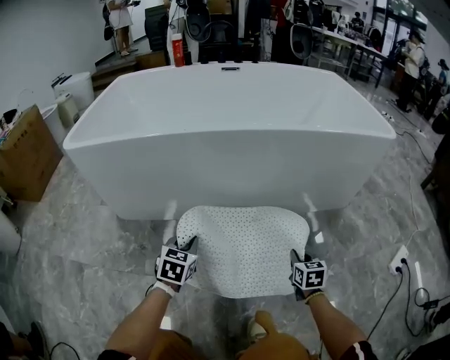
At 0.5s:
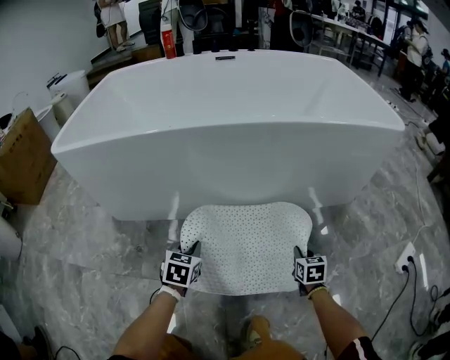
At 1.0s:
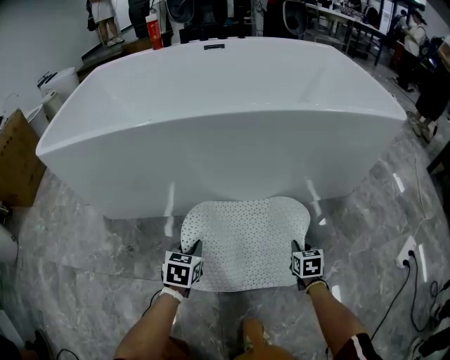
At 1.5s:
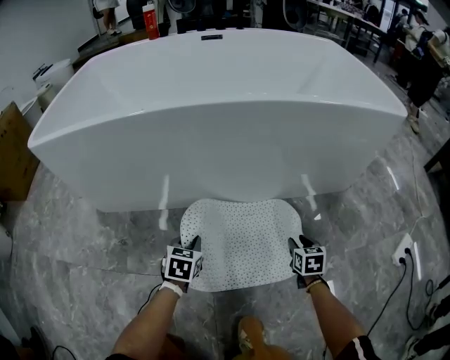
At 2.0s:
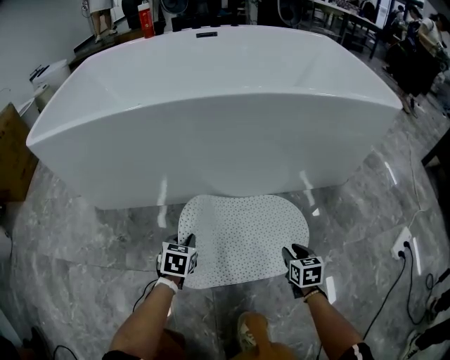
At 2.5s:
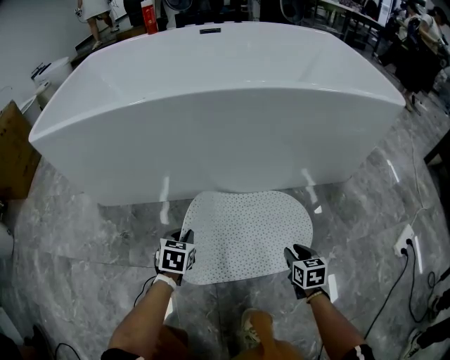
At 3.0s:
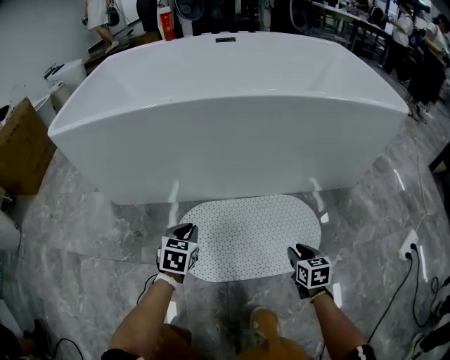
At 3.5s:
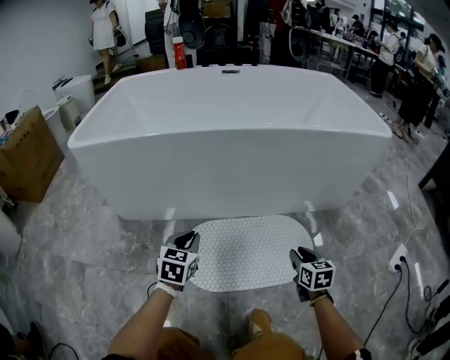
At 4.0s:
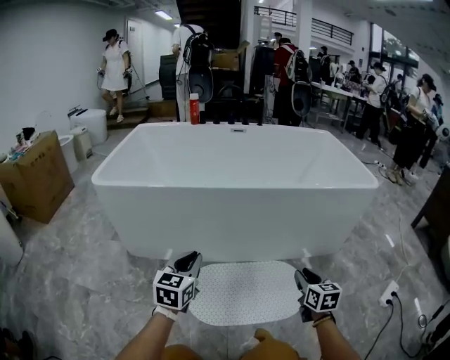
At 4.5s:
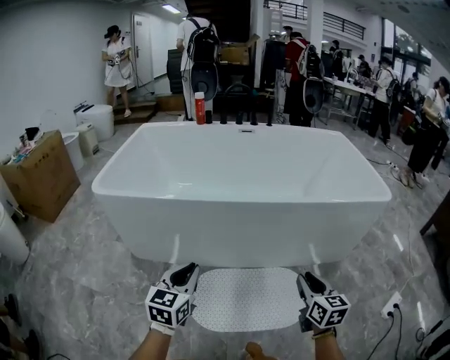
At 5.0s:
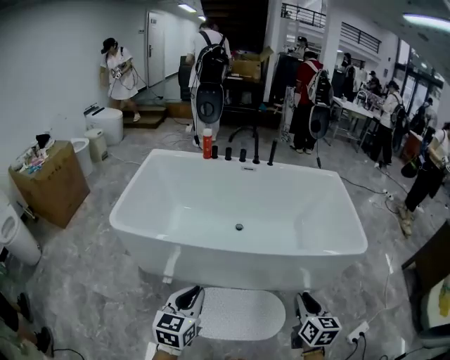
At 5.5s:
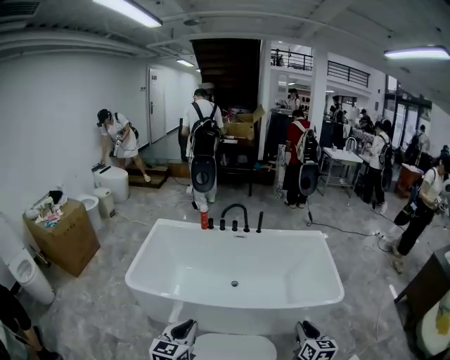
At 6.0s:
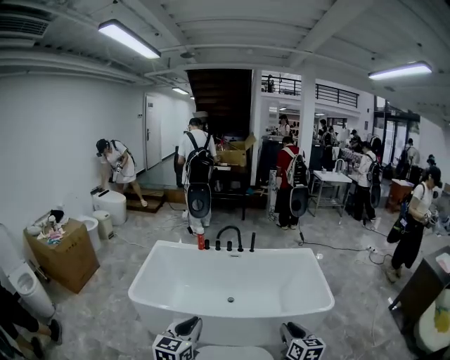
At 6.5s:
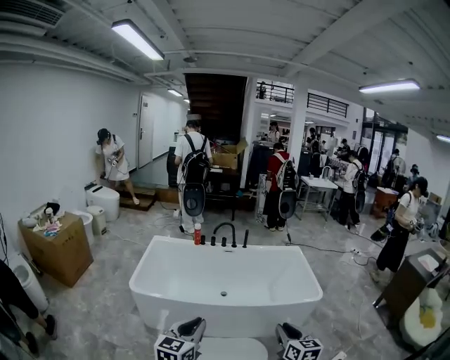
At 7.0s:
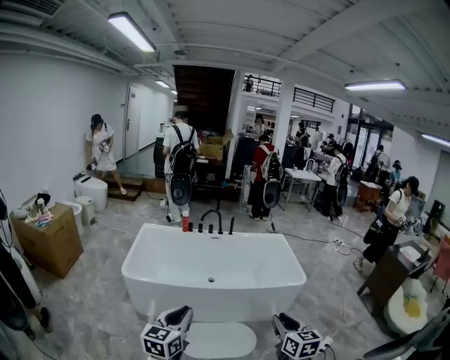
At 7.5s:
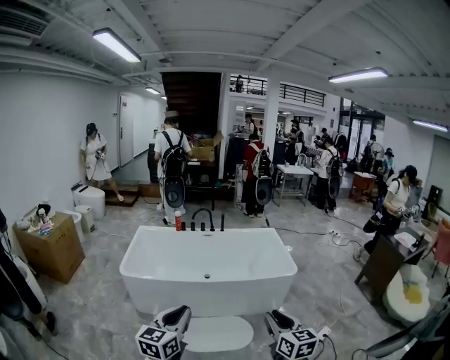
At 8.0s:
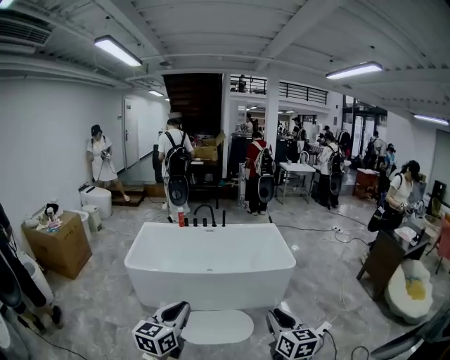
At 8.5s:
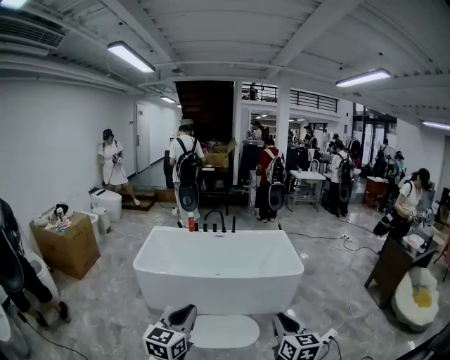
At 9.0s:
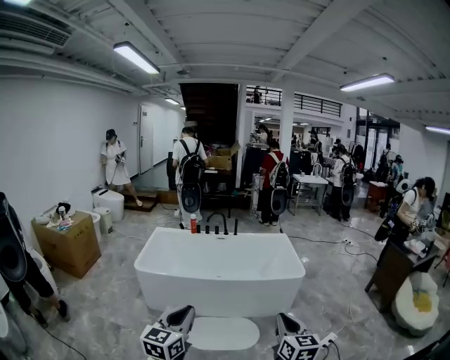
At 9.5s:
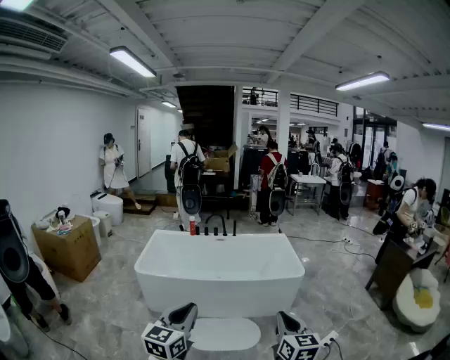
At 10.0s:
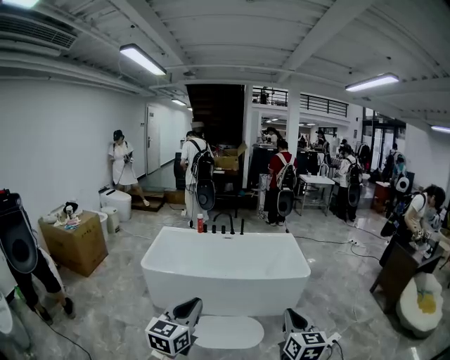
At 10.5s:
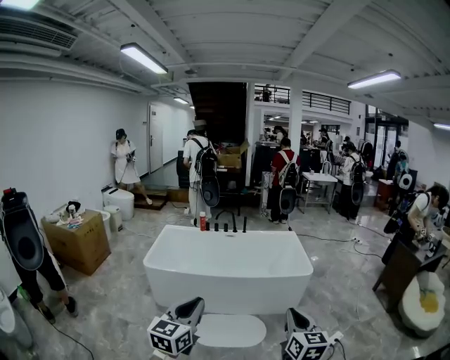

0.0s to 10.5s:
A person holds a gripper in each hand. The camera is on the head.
0.0s to 2.0s: The right gripper travels downward by about 10 cm, and opens its fingers. The left gripper travels downward and to the right by roughly 15 cm.
2.0s to 4.0s: Both grippers travel together upward, some 30 cm. The right gripper swivels approximately 20 degrees. Meanwhile the left gripper tips its fingers upward by approximately 30 degrees.
4.0s to 6.5s: The grippers both shift upward by roughly 70 cm.
6.5s to 8.5s: The left gripper travels backward and to the right by roughly 30 cm, while the right gripper travels backward by some 30 cm.
8.5s to 10.5s: The grippers move only a little.

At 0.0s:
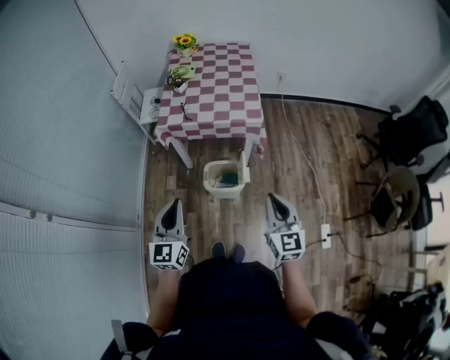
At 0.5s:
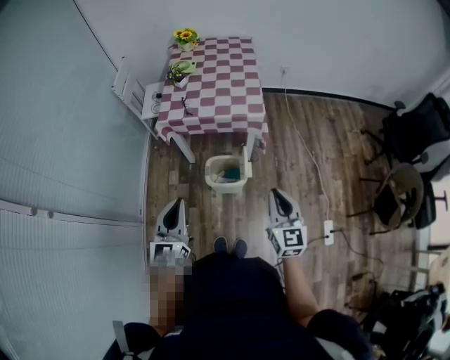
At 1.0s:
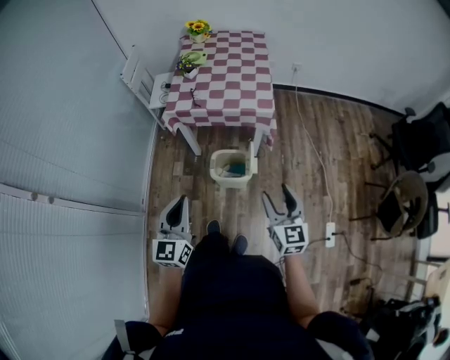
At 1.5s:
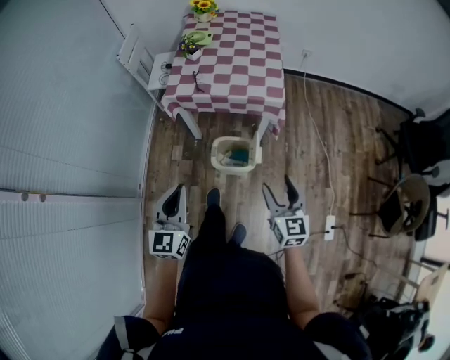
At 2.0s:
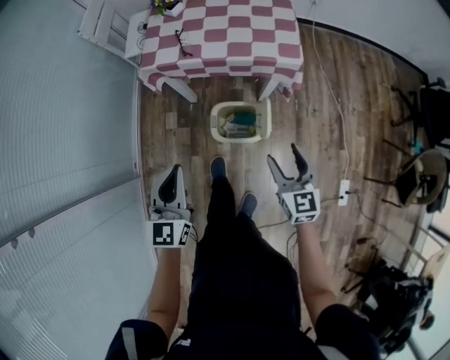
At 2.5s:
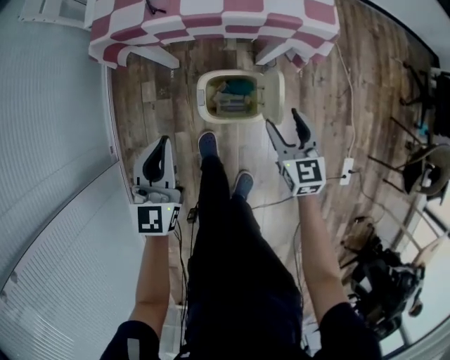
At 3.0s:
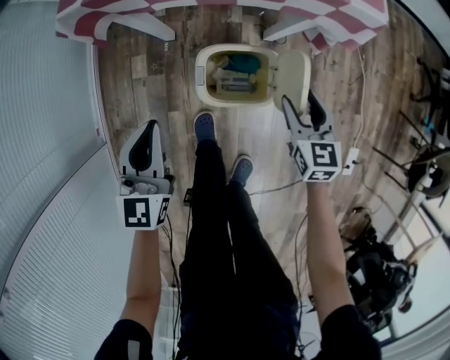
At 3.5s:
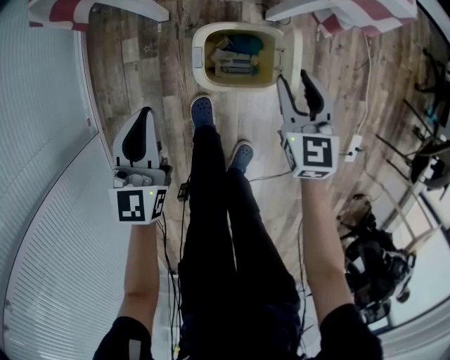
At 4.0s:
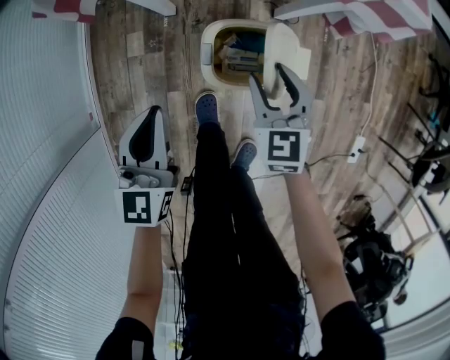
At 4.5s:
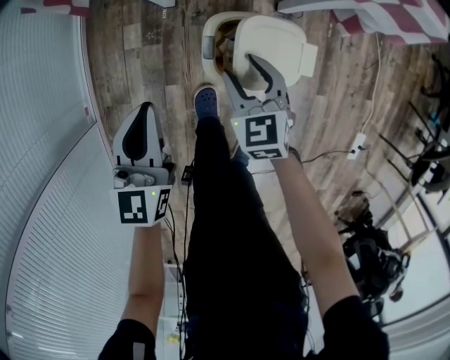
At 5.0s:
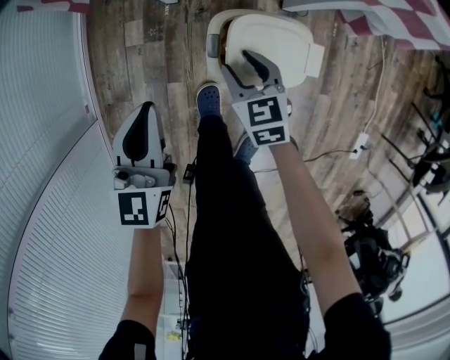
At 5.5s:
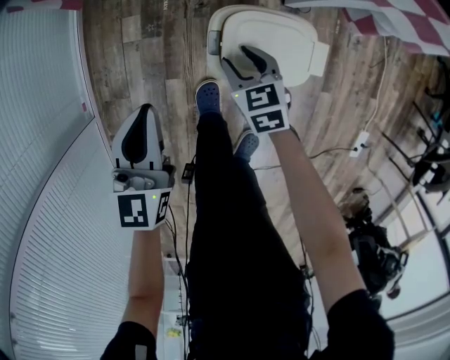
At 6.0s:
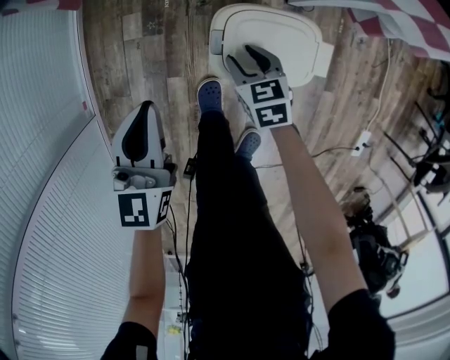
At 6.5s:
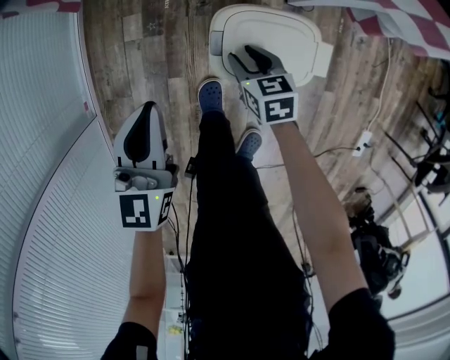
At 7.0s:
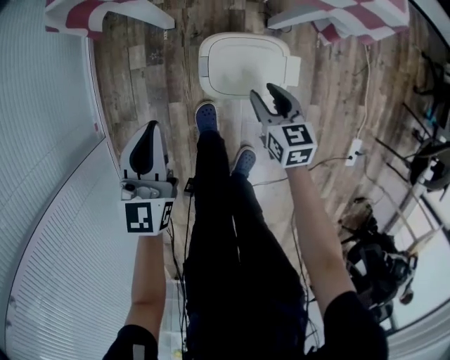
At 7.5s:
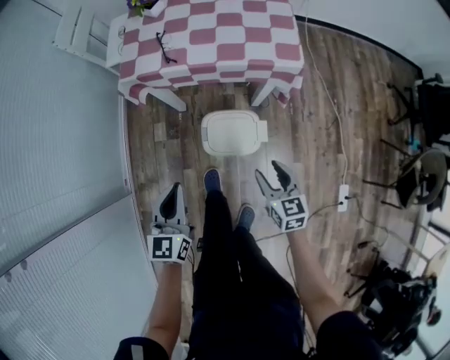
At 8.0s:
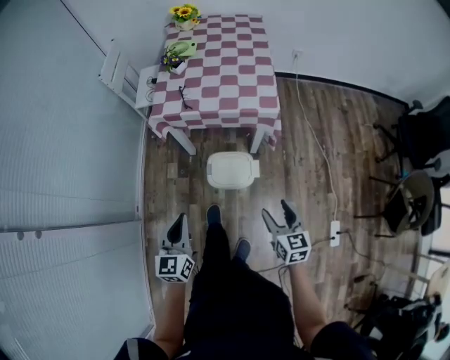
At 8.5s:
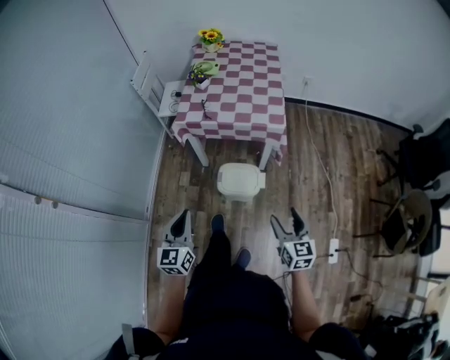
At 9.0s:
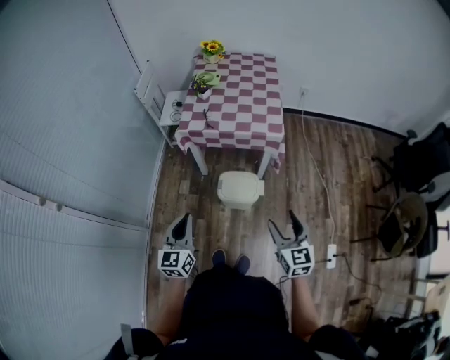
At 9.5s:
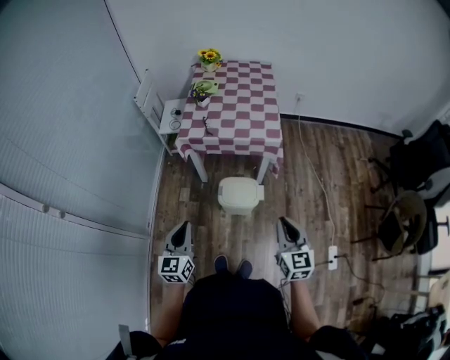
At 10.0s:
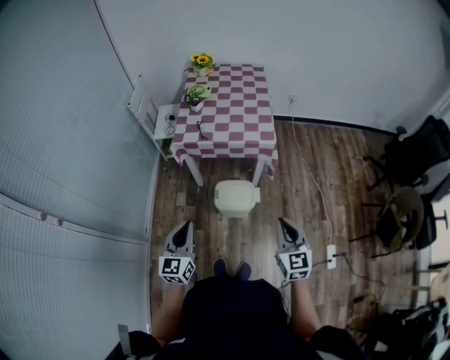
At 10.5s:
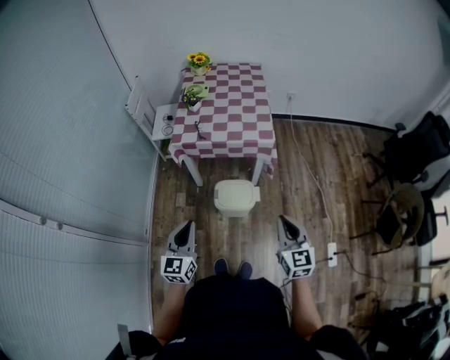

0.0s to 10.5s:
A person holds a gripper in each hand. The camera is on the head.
0.0s to 2.0s: The left gripper is displaced forward and downward by roughly 20 cm. The right gripper travels downward and forward by about 25 cm, and opens up.
2.0s to 4.0s: The left gripper travels downward by approximately 30 cm. The right gripper heads downward, forward and to the left, covering roughly 35 cm.
4.0s to 6.5s: The right gripper heads downward, covering about 15 cm, and rotates some 30 degrees.
6.5s to 8.5s: Both grippers move upward and backward, about 50 cm. The right gripper rotates roughly 30 degrees, and opens up.
8.5s to 10.5s: The right gripper travels upward by approximately 10 cm, and closes.

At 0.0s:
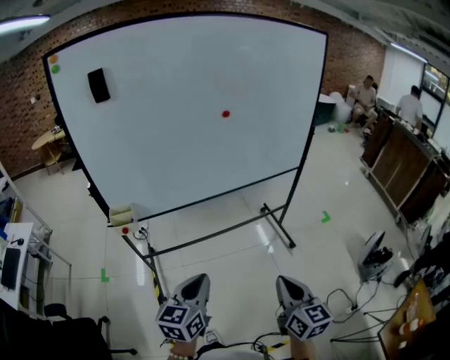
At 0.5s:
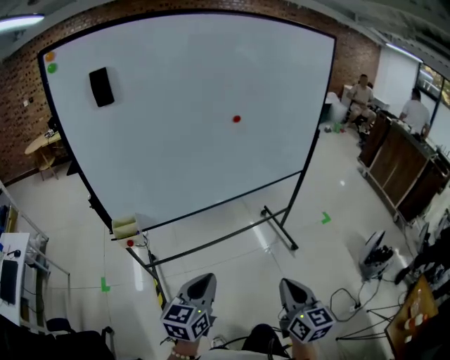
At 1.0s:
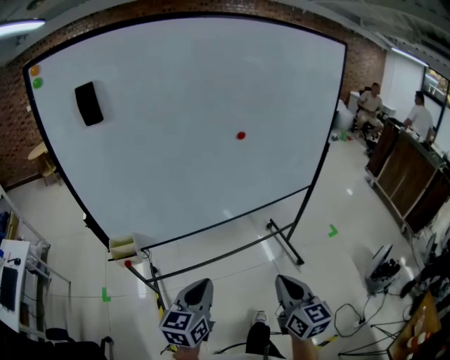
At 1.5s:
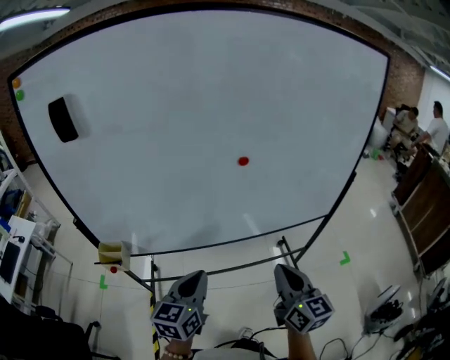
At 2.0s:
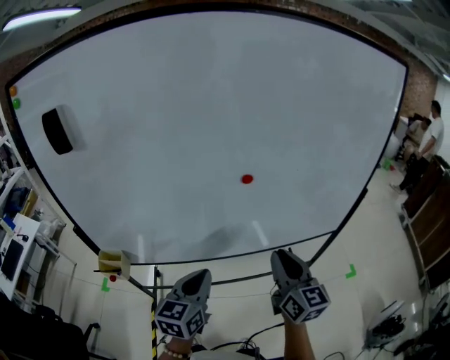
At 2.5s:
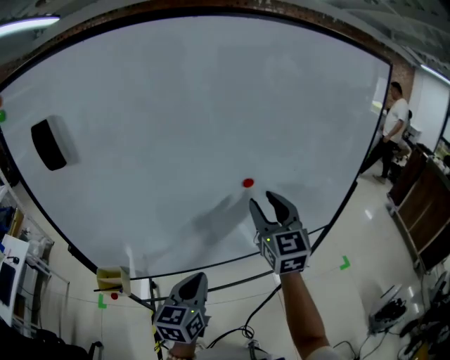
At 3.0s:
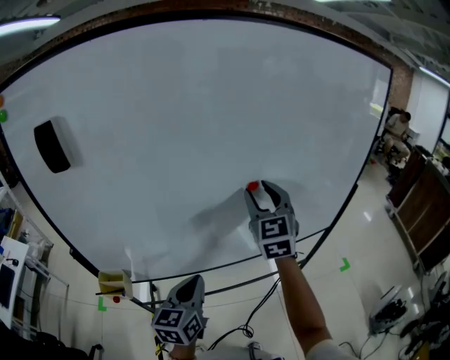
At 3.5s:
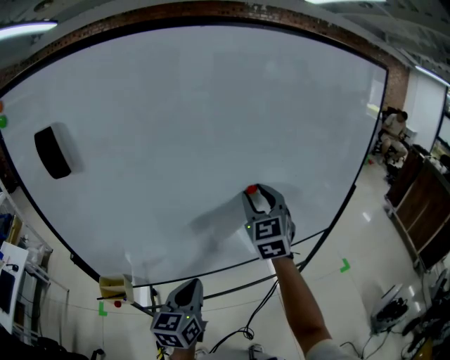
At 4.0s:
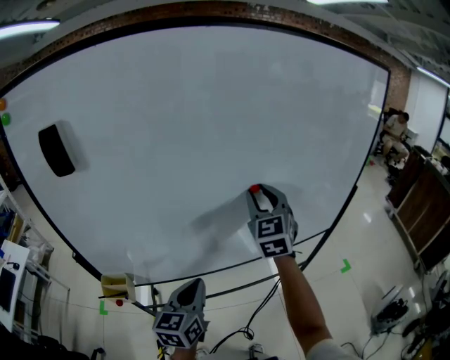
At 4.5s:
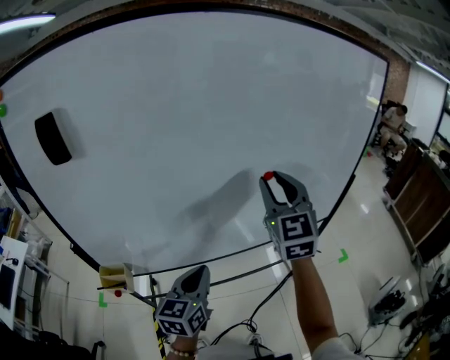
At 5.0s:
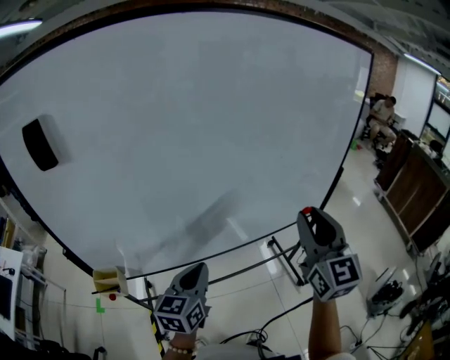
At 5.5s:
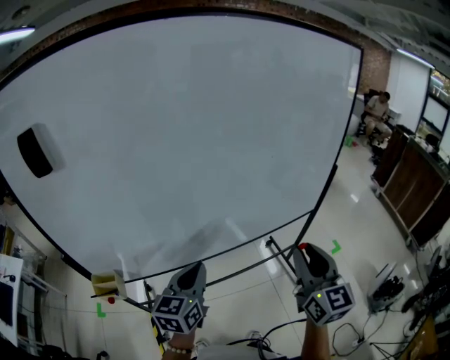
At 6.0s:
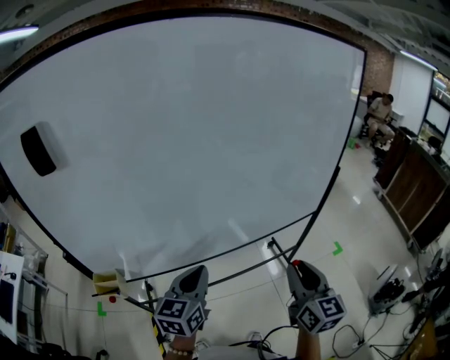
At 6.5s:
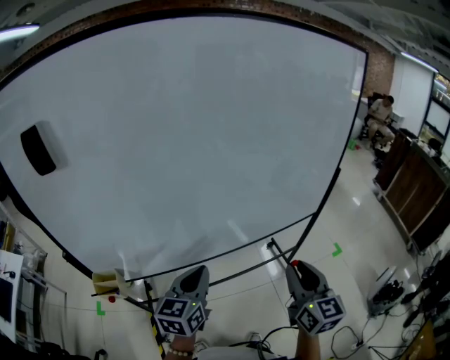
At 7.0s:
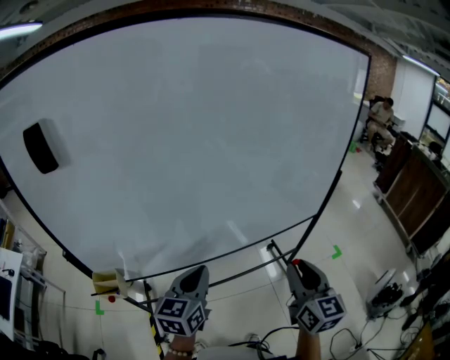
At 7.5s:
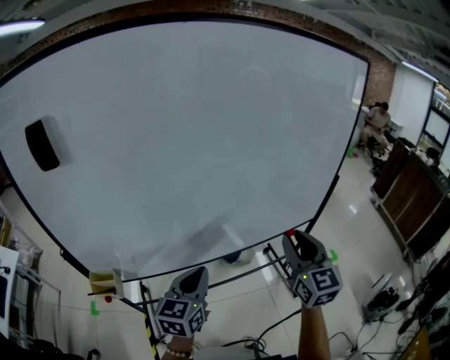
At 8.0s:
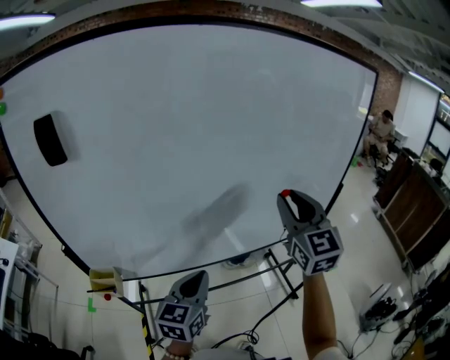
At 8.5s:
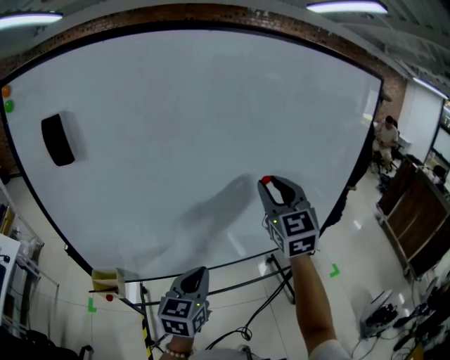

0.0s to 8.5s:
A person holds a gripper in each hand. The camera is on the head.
0.0s to 2.0s: Both grippers move forward, about 40 cm.
2.0s to 4.0s: The right gripper heads forward, upward and to the left, covering about 20 cm, and turns by roughly 40 degrees, while the left gripper shifts roughly 5 cm to the left.
4.0s to 6.5s: The right gripper is displaced backward, to the right and downward by about 30 cm, and turns by about 30 degrees; the left gripper travels to the right by some 5 cm.
6.5s to 8.5s: The right gripper travels forward, upward and to the left by some 30 cm, and rotates about 30 degrees.
